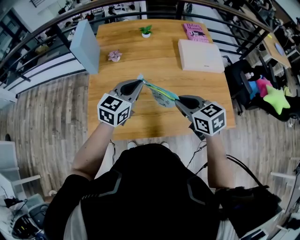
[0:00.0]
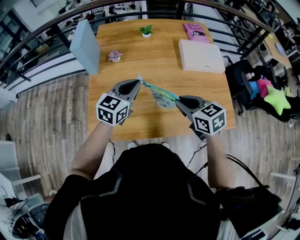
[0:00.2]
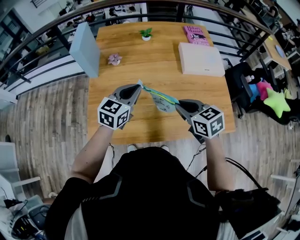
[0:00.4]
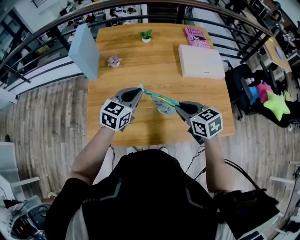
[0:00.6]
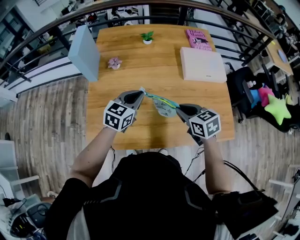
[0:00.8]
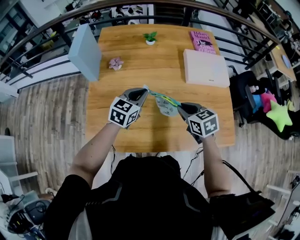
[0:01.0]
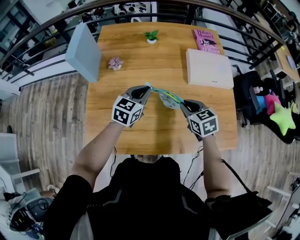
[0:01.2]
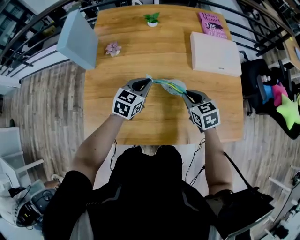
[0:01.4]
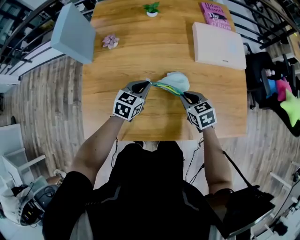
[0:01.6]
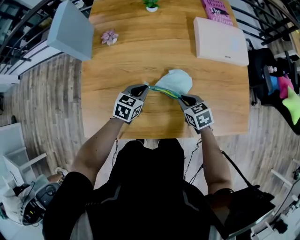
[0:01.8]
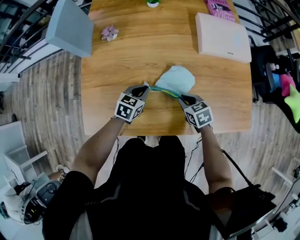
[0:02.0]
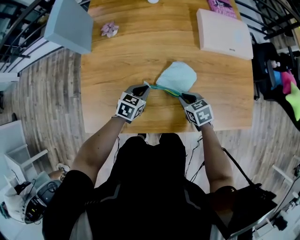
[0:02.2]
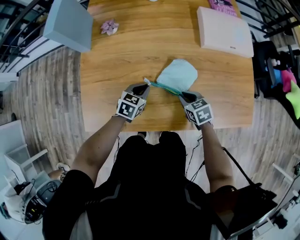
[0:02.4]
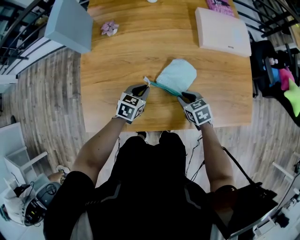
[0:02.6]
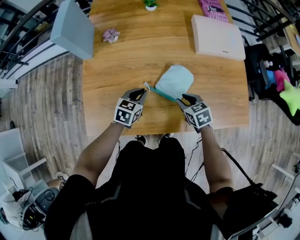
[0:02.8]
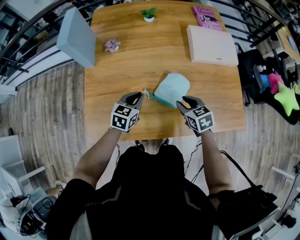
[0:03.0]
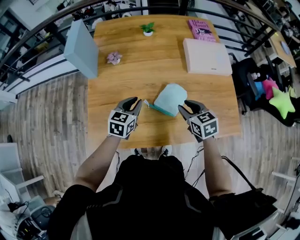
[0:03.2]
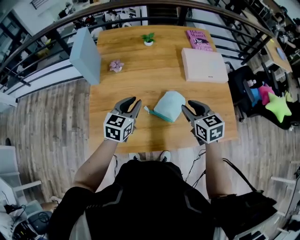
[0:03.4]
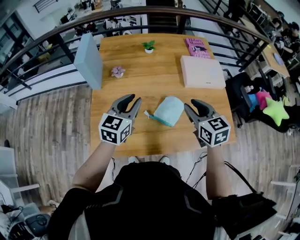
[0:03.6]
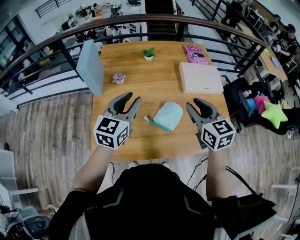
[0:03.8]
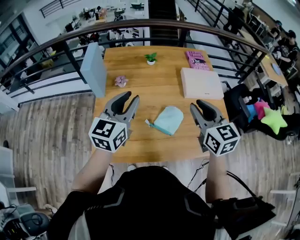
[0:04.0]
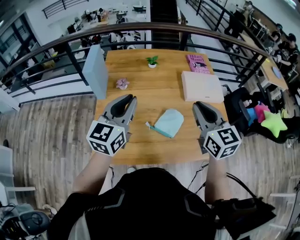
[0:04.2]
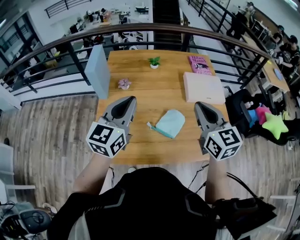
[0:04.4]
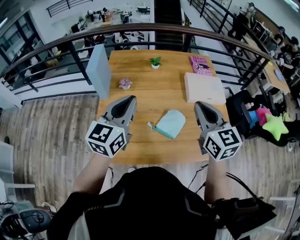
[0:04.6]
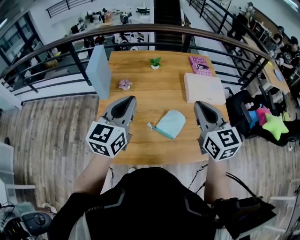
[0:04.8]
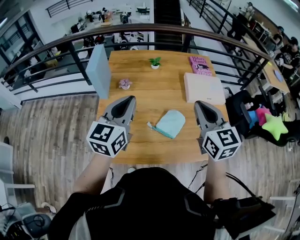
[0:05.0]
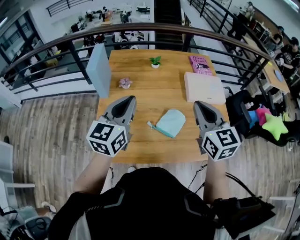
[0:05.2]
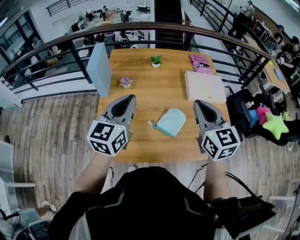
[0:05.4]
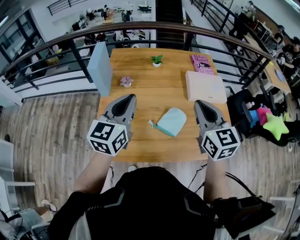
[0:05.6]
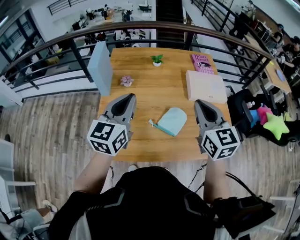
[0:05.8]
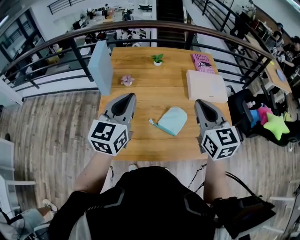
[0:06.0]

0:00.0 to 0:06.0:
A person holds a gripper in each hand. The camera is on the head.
0:00.0 to 0:01.6: The right gripper goes some 20 cm downward and forward, while the left gripper shifts approximately 20 cm downward, and swivels approximately 20 degrees.
0:01.6 to 0:03.0: The right gripper moves about 5 cm downward and comes back. The left gripper goes about 5 cm backward, and reaches some 10 cm downward, then returns.
0:03.0 to 0:04.4: Both grippers move upward, approximately 35 cm. The right gripper tilts its fingers roughly 40 degrees upward, and closes, while the left gripper angles its fingers upward, by approximately 30 degrees, and opens and closes again.
0:04.4 to 0:06.0: The grippers move only a little.

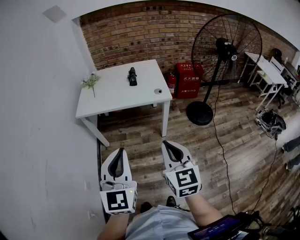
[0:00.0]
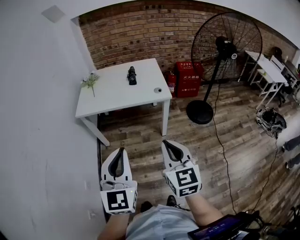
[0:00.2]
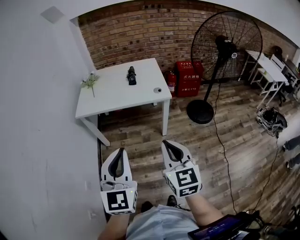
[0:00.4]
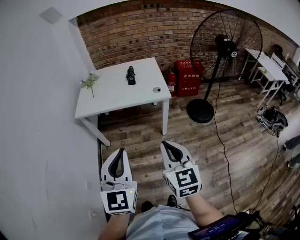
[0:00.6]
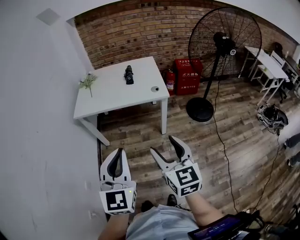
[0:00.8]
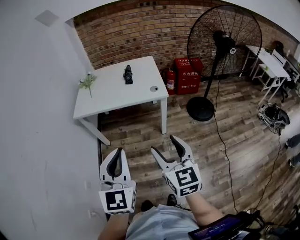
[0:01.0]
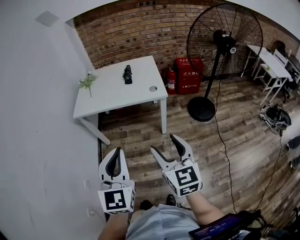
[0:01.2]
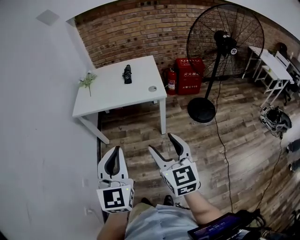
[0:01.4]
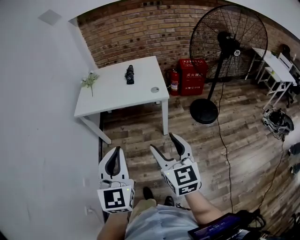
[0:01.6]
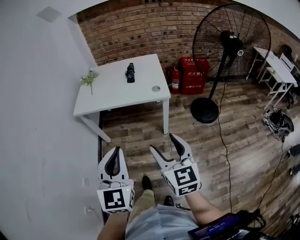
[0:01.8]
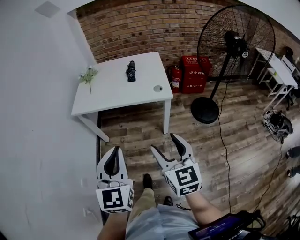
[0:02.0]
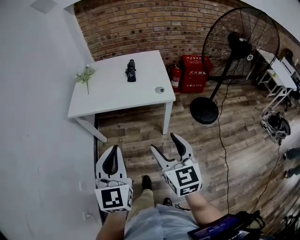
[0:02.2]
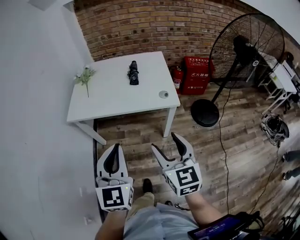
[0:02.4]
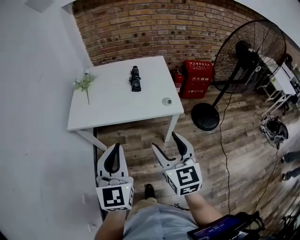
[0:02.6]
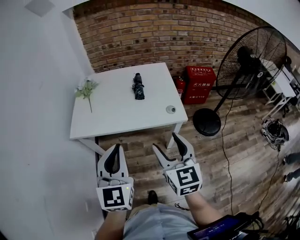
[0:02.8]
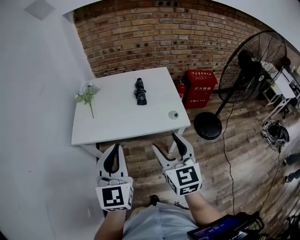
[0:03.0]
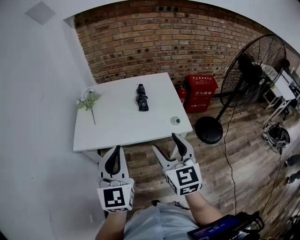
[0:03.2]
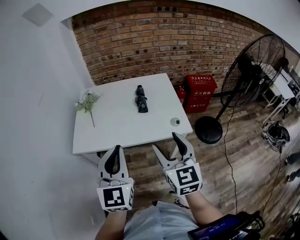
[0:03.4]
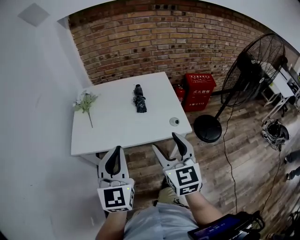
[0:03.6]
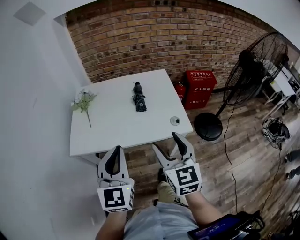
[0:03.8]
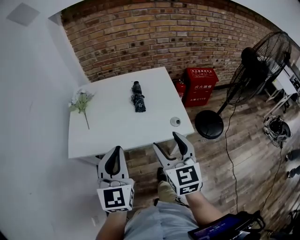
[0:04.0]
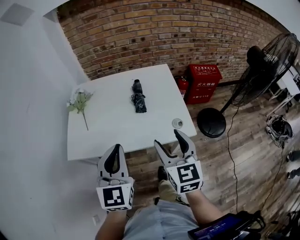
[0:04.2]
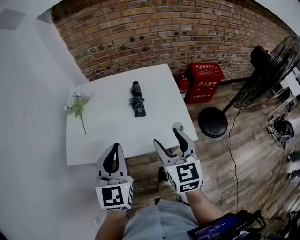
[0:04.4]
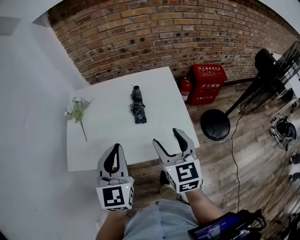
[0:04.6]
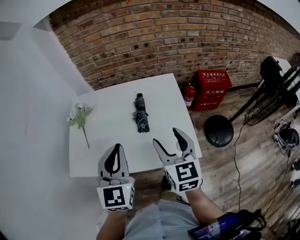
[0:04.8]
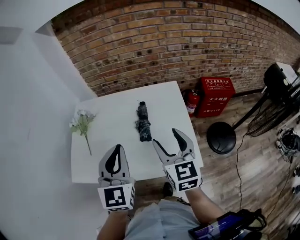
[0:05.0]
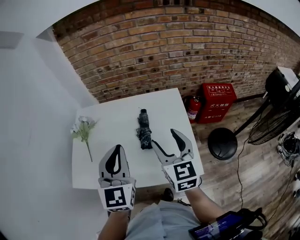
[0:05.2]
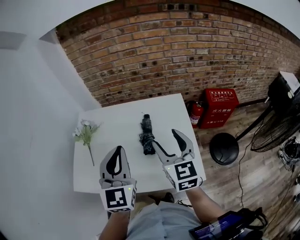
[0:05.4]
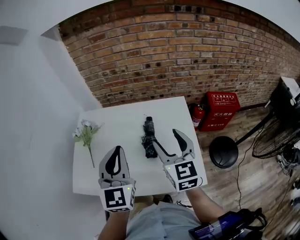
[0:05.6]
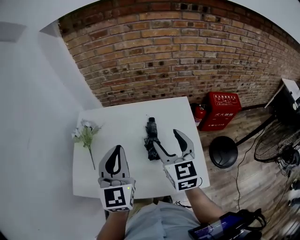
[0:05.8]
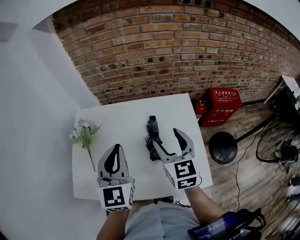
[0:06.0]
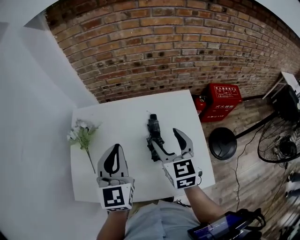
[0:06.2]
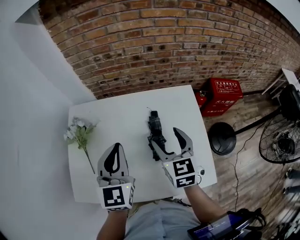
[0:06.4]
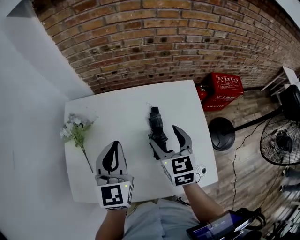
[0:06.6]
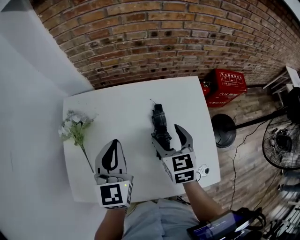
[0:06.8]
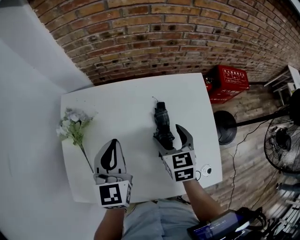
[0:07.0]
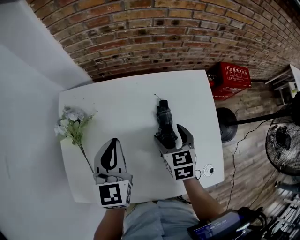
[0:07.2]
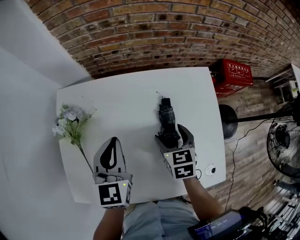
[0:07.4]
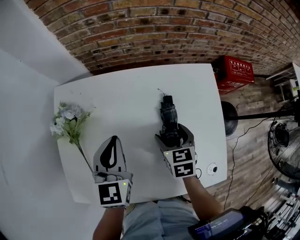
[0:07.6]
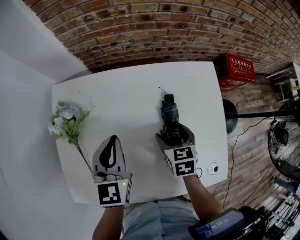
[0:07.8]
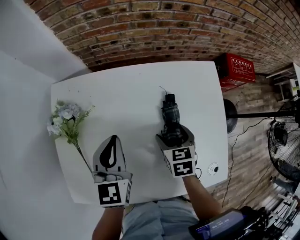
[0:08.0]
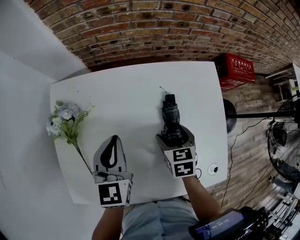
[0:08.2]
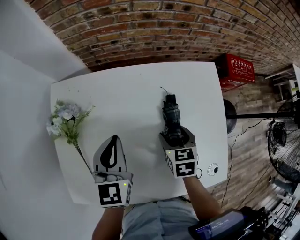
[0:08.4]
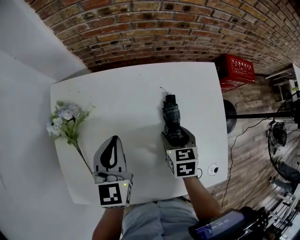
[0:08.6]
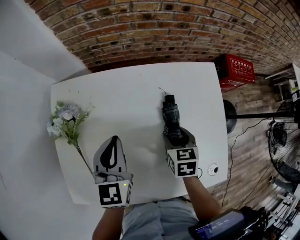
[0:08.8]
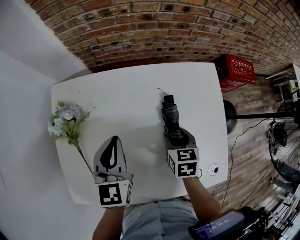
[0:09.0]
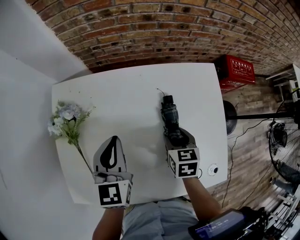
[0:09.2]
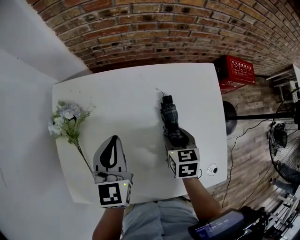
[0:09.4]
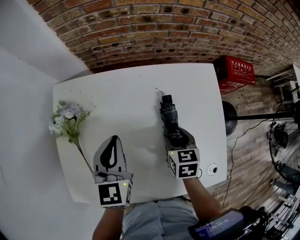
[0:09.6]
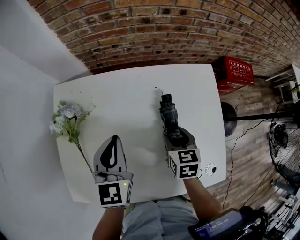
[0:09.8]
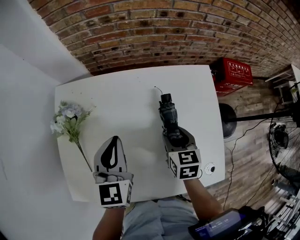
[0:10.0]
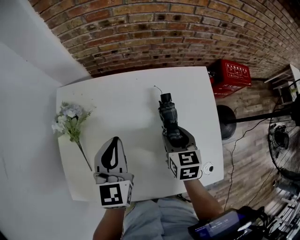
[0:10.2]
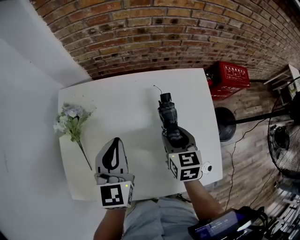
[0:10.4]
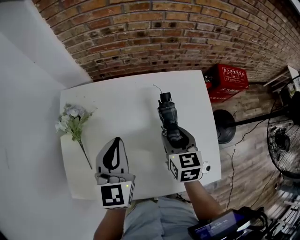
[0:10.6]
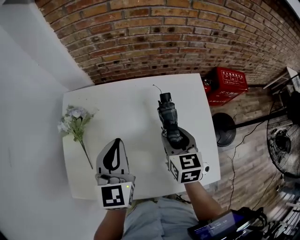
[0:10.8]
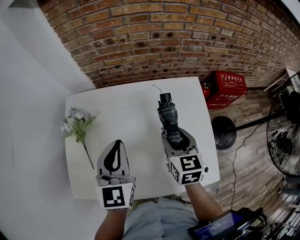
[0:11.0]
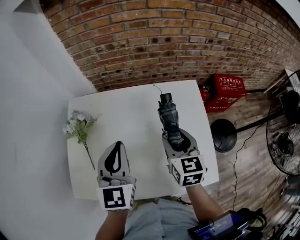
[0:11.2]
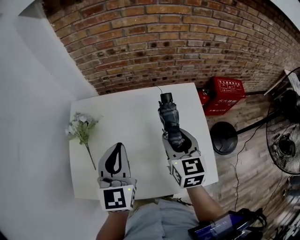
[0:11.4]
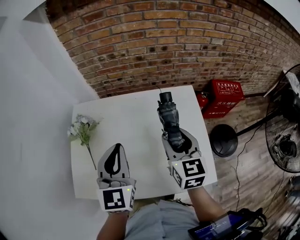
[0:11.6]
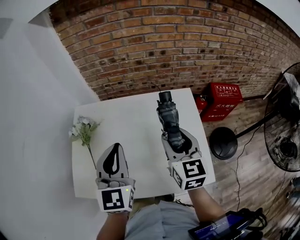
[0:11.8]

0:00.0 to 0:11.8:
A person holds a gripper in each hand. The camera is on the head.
0:00.0 to 0:01.4: The grippers both shift to the right by some 5 cm. The right gripper opens its fingers.
0:01.4 to 0:03.0: Both grippers travel together forward, about 30 cm.
0:03.0 to 0:04.4: The two grippers go about 15 cm forward.
0:04.4 to 0:06.0: Both grippers move forward, roughly 25 cm.
0:06.0 to 0:07.4: The left gripper is displaced downward, forward and to the left by approximately 20 cm, while the right gripper is displaced downward by approximately 20 cm, and changes its angle by some 30 degrees.
0:07.4 to 0:08.8: The right gripper closes.
0:08.8 to 0:10.4: Both grippers move upward, some 5 cm.
0:10.4 to 0:11.8: The left gripper moves upward and backward, approximately 15 cm, while the right gripper goes approximately 15 cm upward, and rotates roughly 20 degrees.

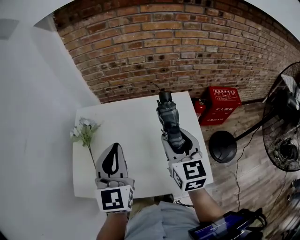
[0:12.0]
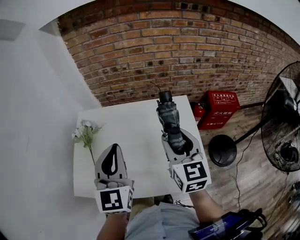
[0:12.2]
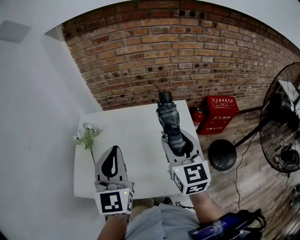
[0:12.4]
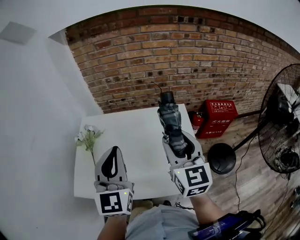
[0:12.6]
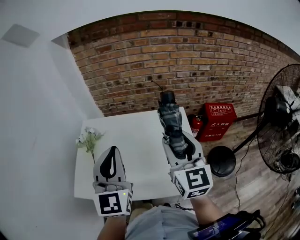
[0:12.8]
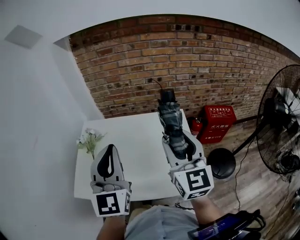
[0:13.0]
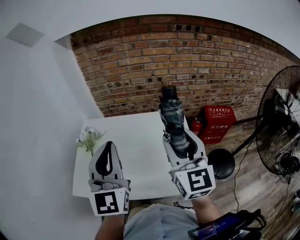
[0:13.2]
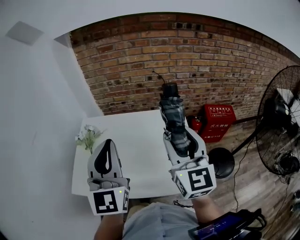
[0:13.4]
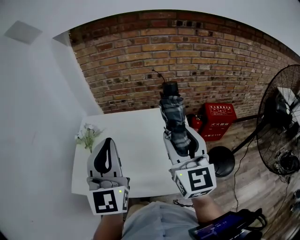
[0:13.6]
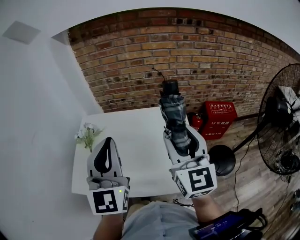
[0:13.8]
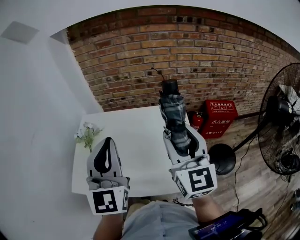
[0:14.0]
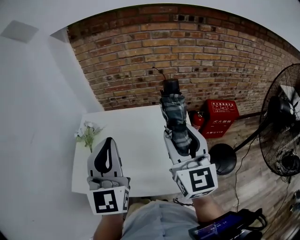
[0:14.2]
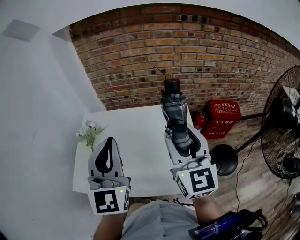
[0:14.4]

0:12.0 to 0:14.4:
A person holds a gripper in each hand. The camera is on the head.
0:12.0 to 0:13.2: Both grippers travel together upward and backward, roughly 15 cm. The right gripper swivels about 20 degrees.
0:13.2 to 0:14.4: The grippers stay close to where they were, moving slightly.

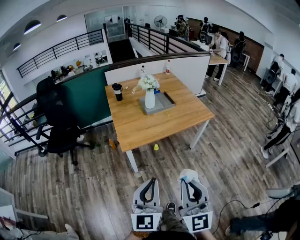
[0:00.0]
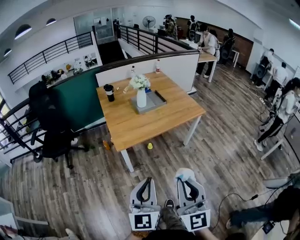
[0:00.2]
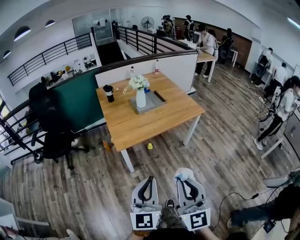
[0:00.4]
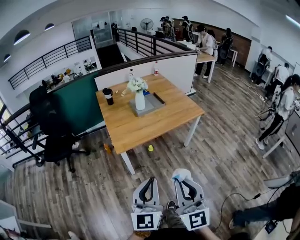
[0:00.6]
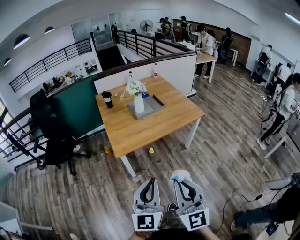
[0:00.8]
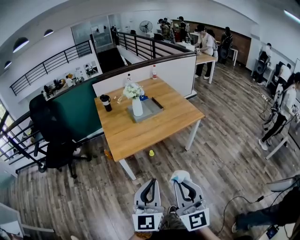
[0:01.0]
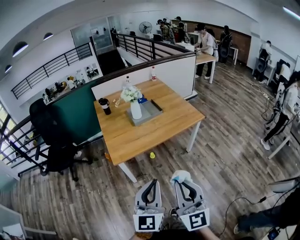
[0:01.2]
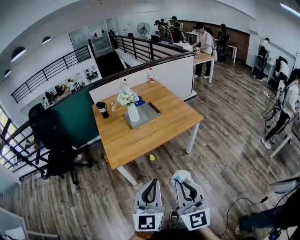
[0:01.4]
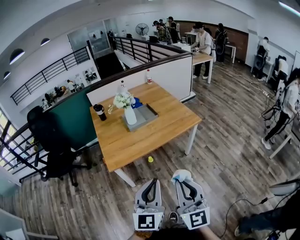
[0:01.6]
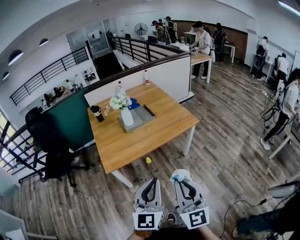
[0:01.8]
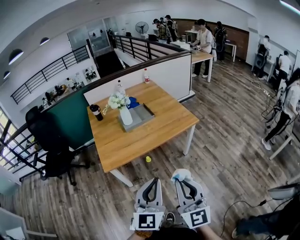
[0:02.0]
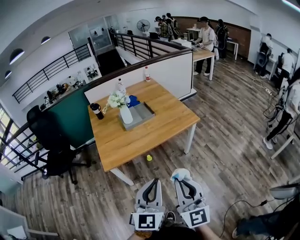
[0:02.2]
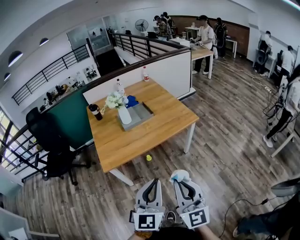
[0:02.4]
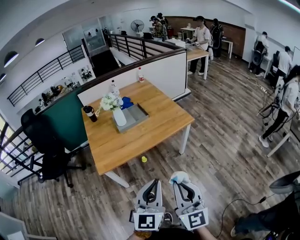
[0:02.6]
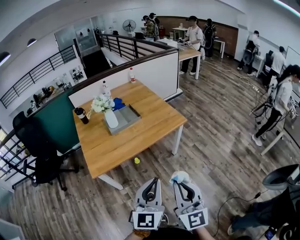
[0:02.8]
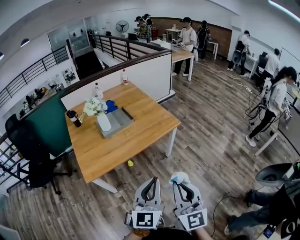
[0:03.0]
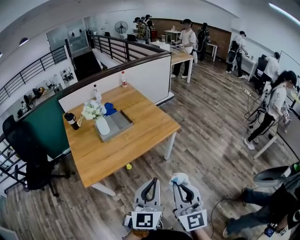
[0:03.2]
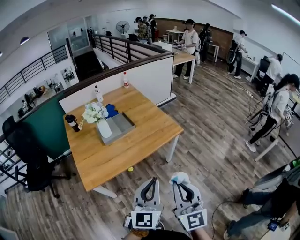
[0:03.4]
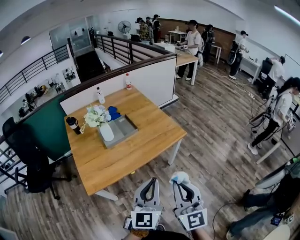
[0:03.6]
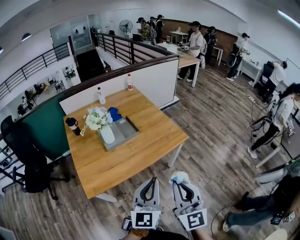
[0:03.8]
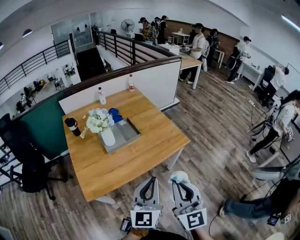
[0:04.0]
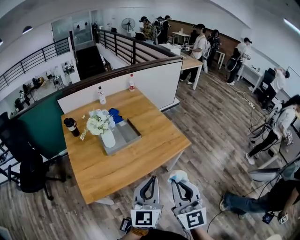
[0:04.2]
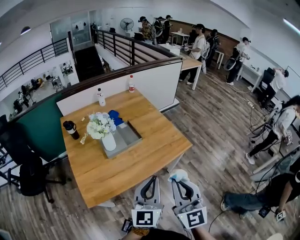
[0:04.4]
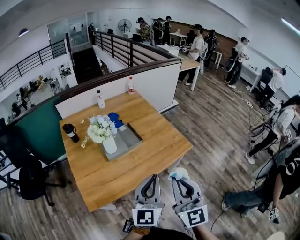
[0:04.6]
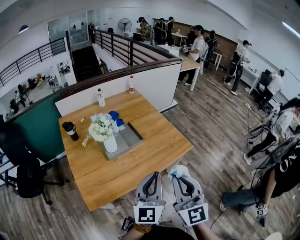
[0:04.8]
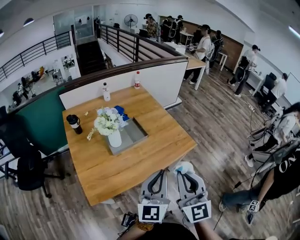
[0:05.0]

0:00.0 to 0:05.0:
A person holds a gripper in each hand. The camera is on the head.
0:00.0 to 0:01.6: The grippers both shift to the right and forward by roughly 15 cm.
0:01.6 to 0:03.4: Both grippers travel together forward and to the right, some 20 cm.
0:03.4 to 0:05.0: The grippers both shift forward and to the left by some 20 cm.
